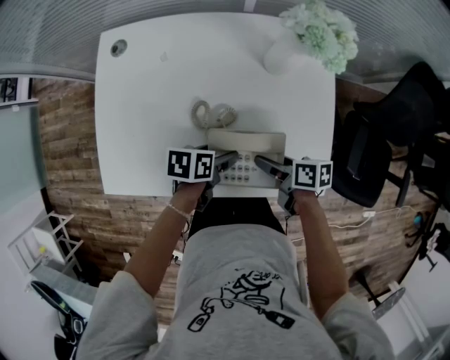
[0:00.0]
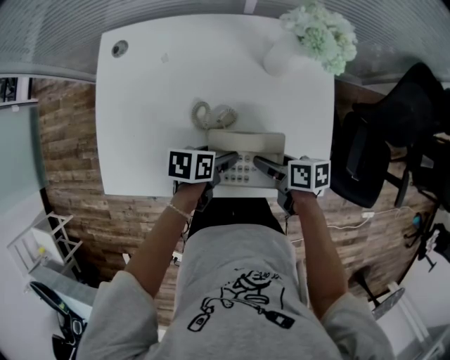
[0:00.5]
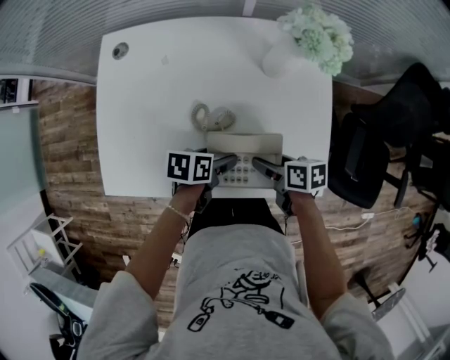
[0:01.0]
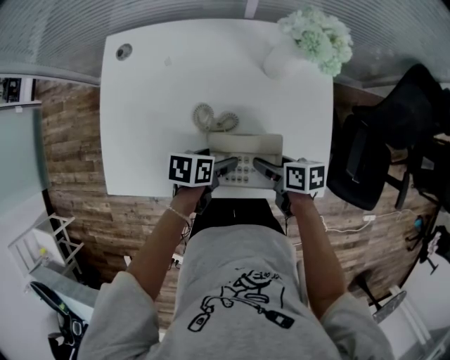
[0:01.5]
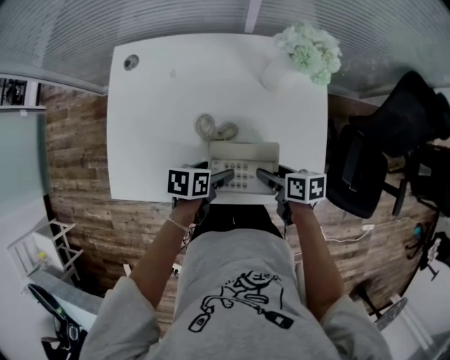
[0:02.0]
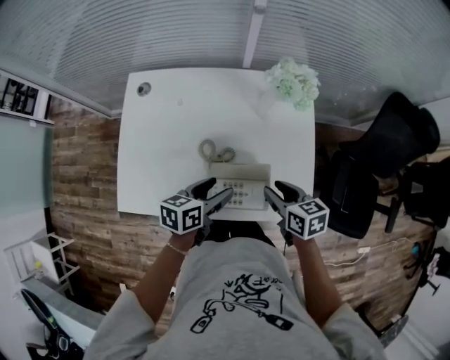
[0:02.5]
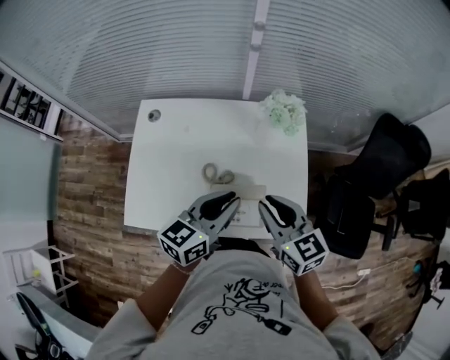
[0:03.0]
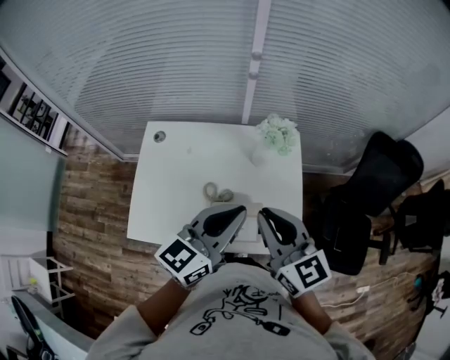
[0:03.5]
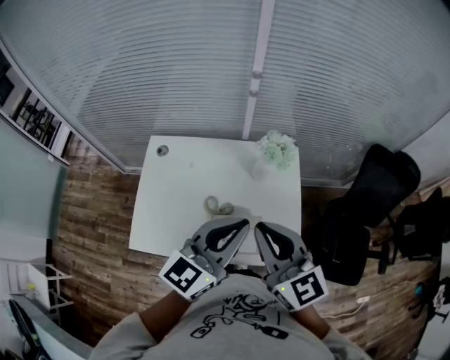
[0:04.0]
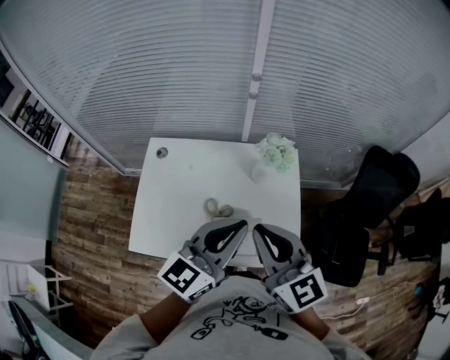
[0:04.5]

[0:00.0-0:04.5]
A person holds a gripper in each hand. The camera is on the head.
0:00.0 to 0:02.0: There are only small adjustments of the grippers.
0:02.0 to 0:04.5: Both grippers travel together upward, about 40 cm. The left gripper tips its fingers upward by roughly 50 degrees, and closes up, while the right gripper tips its fingers upward by roughly 40 degrees, and closes.

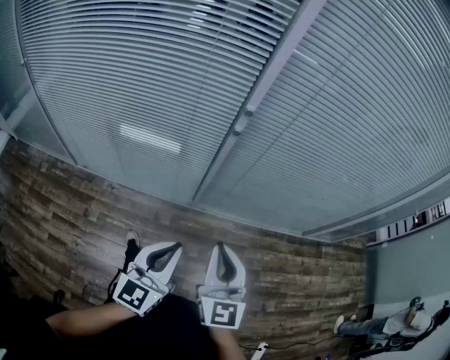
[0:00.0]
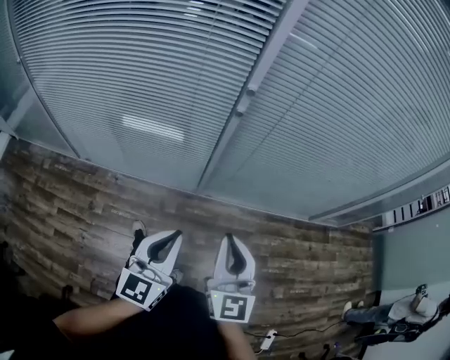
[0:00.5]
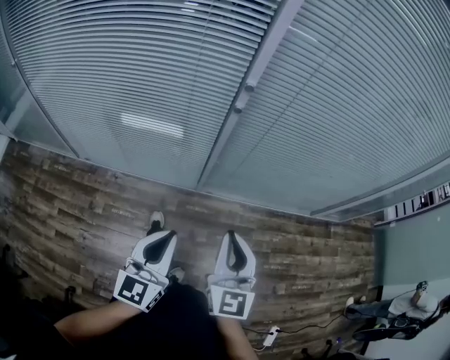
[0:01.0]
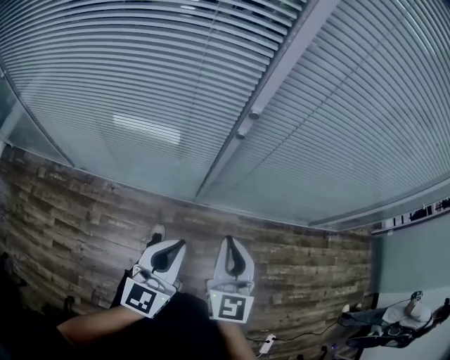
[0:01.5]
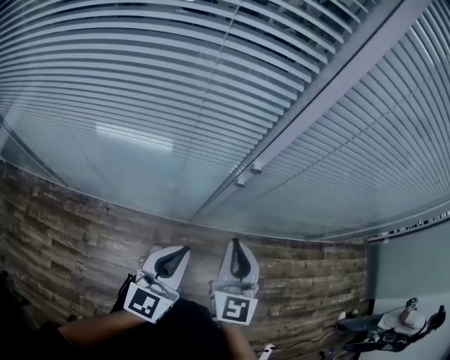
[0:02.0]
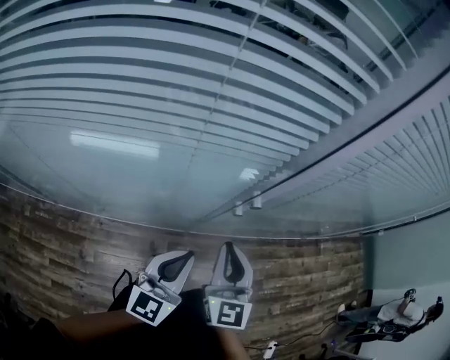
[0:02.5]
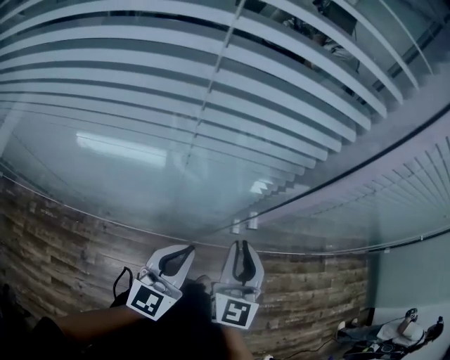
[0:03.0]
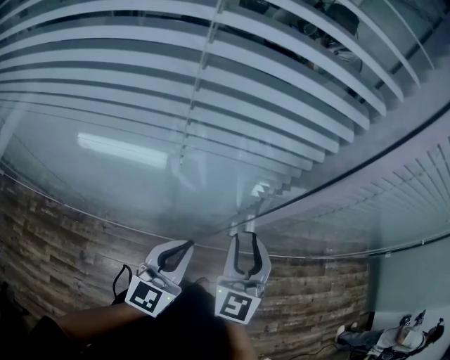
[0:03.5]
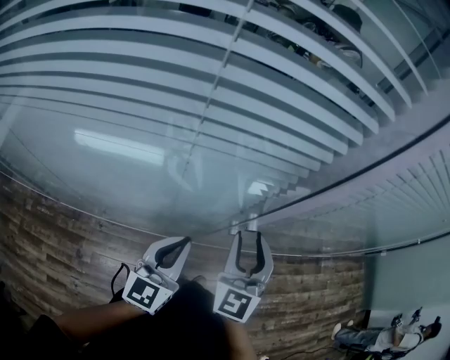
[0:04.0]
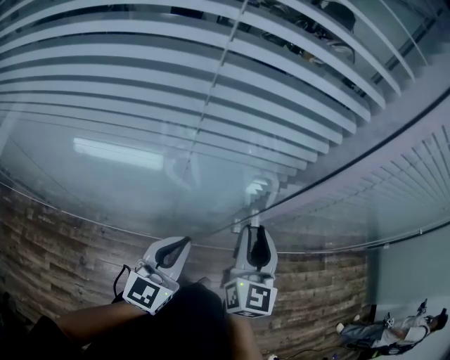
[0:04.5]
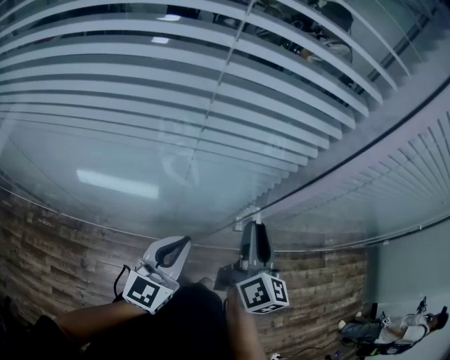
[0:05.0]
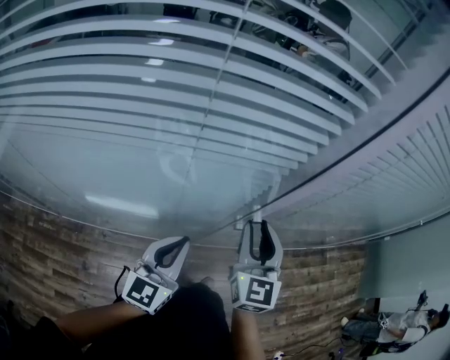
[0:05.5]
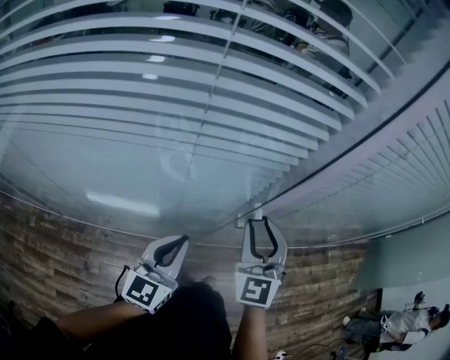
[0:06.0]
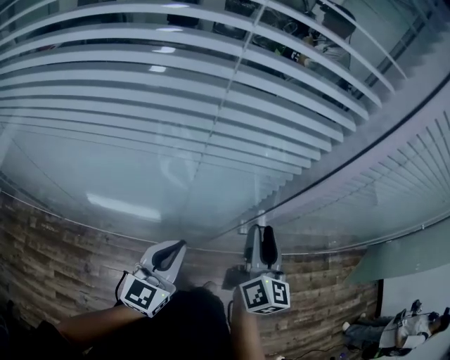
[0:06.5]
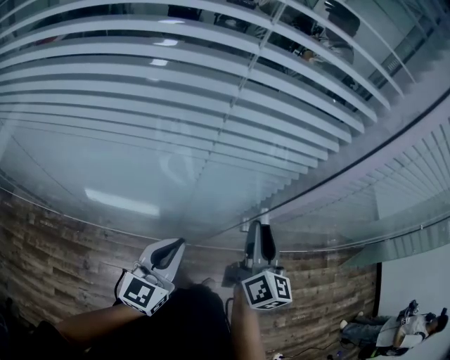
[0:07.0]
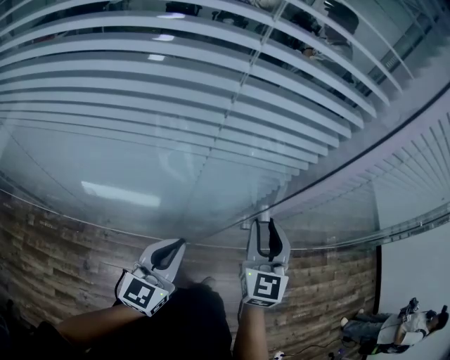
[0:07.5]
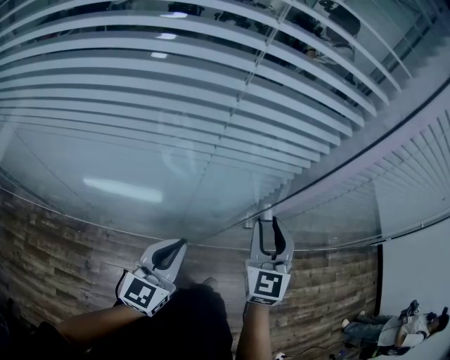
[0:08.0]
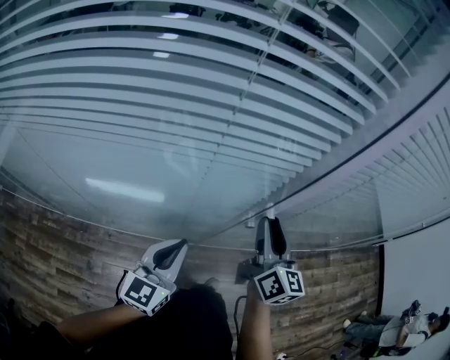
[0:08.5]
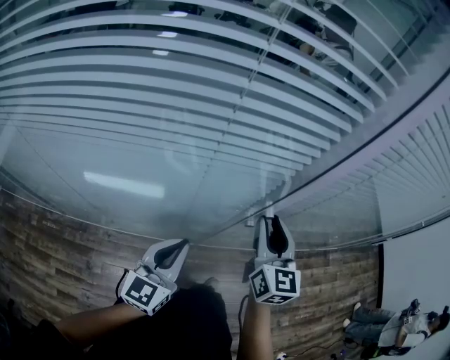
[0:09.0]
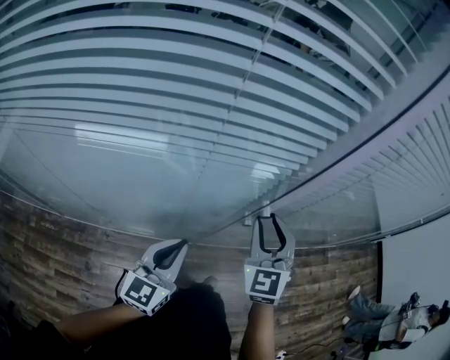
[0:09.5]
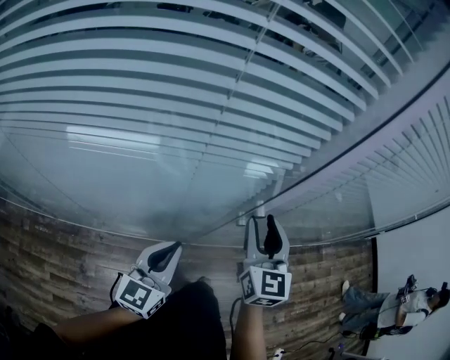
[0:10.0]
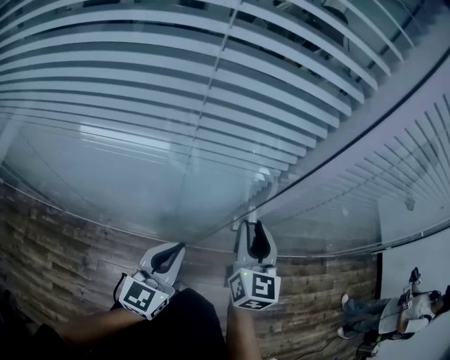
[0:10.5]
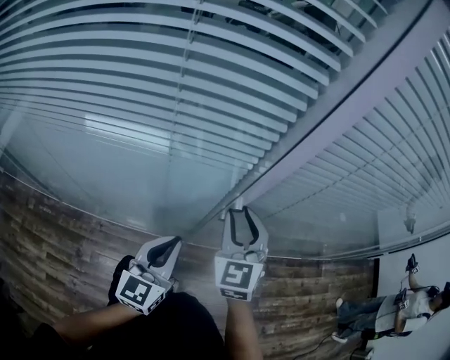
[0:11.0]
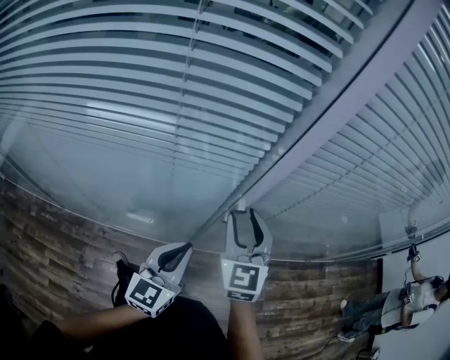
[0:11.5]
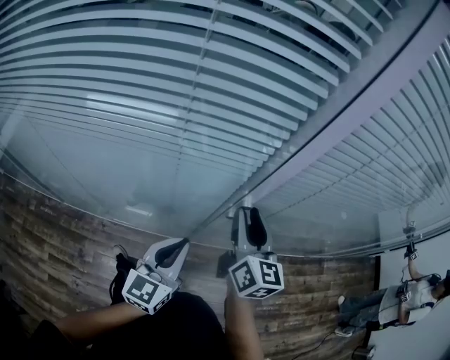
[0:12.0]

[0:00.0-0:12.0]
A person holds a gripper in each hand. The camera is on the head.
0:00.0 to 0:02.0: The grippers both shift forward by approximately 20 cm.
0:02.0 to 0:04.0: Both grippers travel together forward, about 15 cm. The right gripper opens its fingers.
0:10.0 to 0:12.0: The right gripper swivels roughly 20 degrees. Meanwhile the left gripper moves to the right, roughly 5 cm.

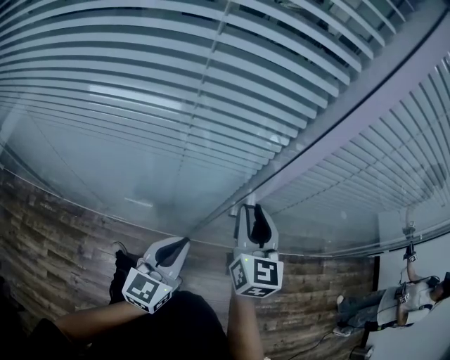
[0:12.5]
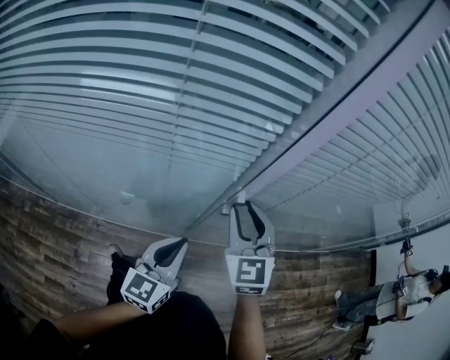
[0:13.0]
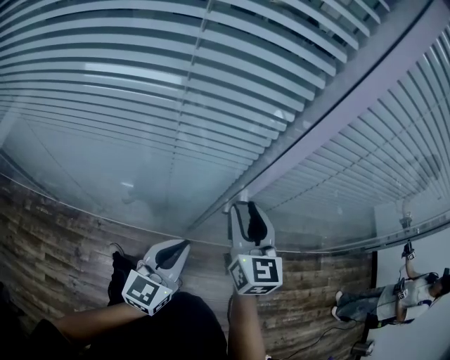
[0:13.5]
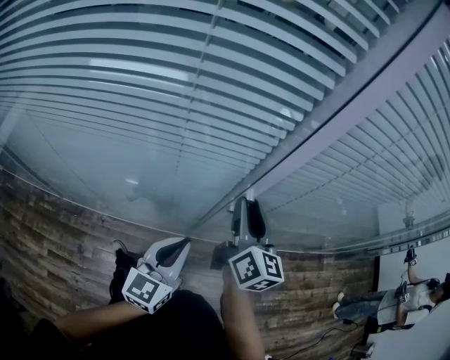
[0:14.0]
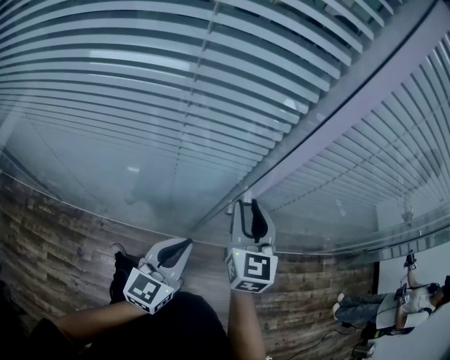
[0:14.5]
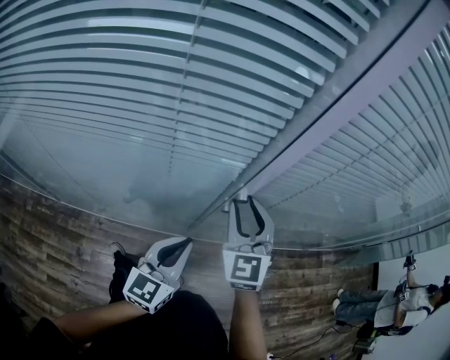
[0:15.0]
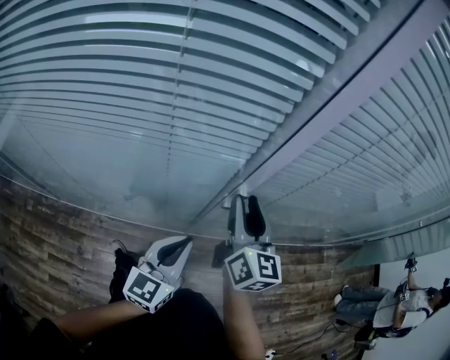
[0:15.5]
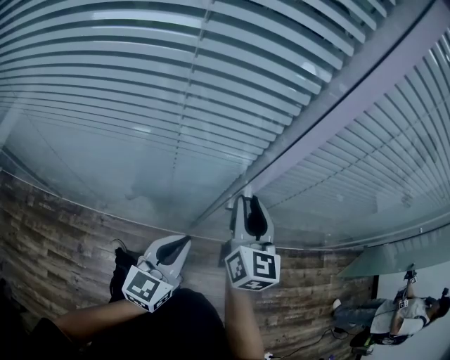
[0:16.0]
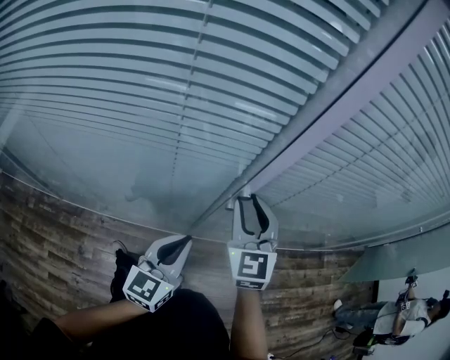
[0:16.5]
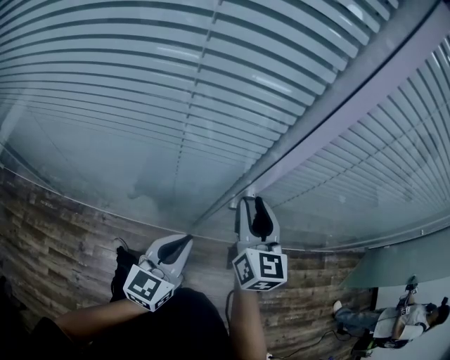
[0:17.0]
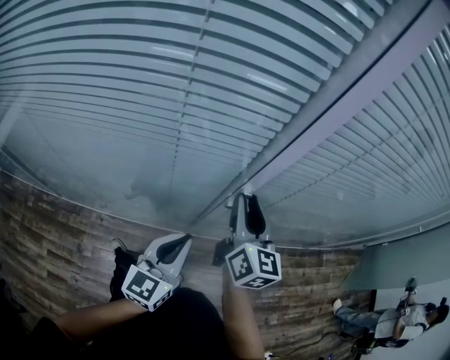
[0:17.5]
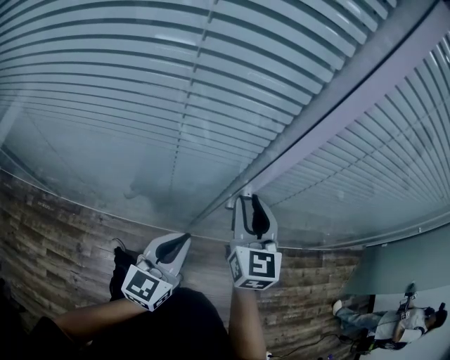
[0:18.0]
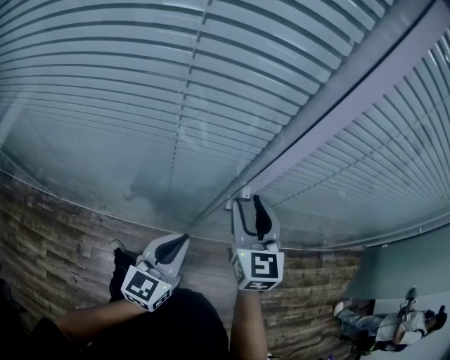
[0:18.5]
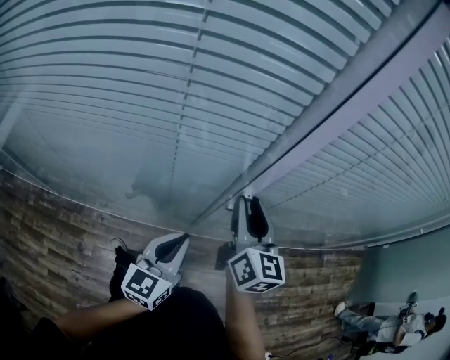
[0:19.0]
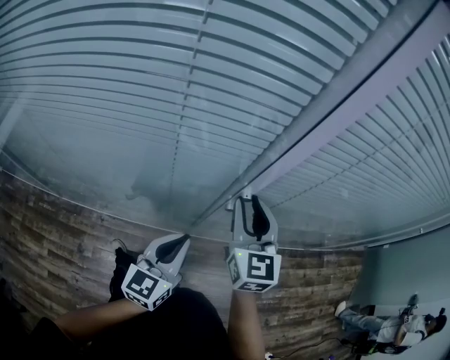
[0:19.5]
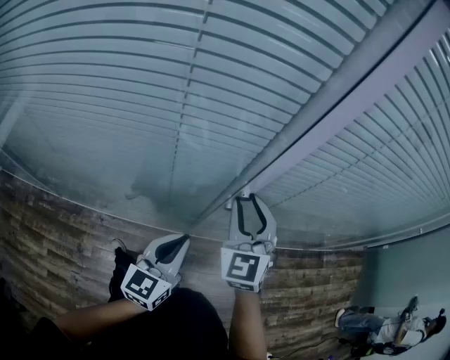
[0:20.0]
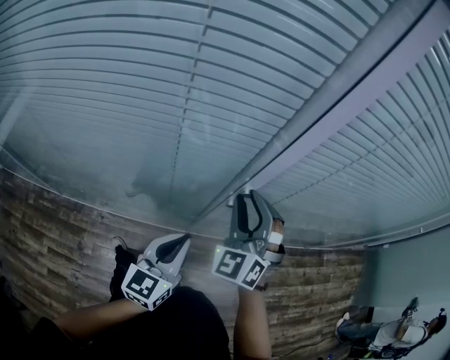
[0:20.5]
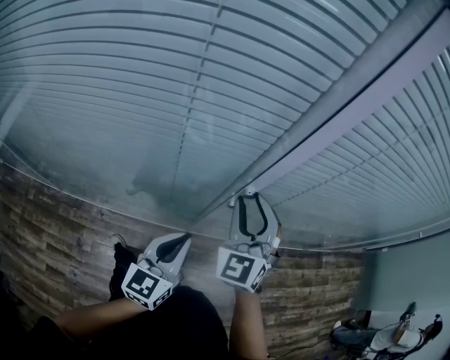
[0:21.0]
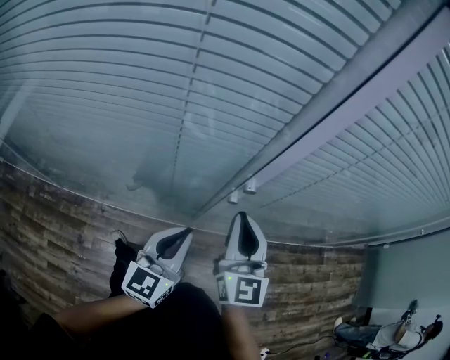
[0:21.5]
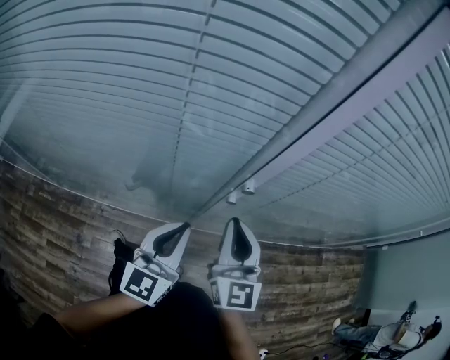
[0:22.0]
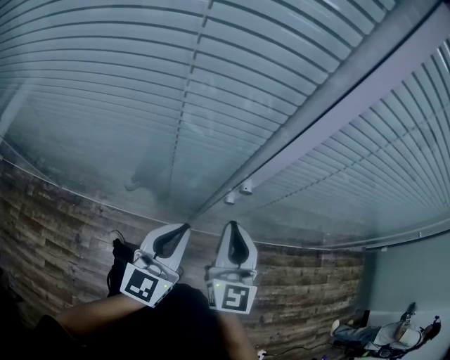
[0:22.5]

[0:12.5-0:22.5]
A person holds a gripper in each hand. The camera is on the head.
0:18.5 to 0:20.5: The right gripper twists about 40 degrees counterclockwise, seen from behind.
0:20.5 to 0:22.5: The left gripper heads upward, covering some 5 cm. The right gripper is displaced backward by roughly 5 cm, rolls clockwise, seen from behind, by some 50 degrees, and closes.

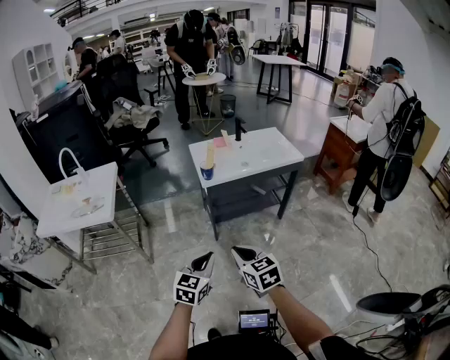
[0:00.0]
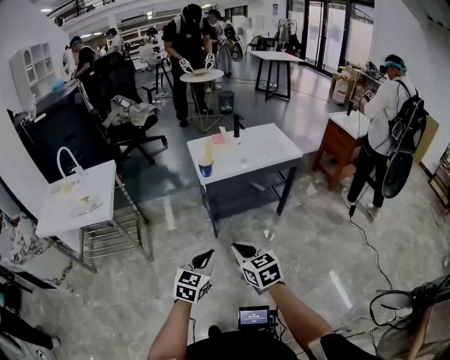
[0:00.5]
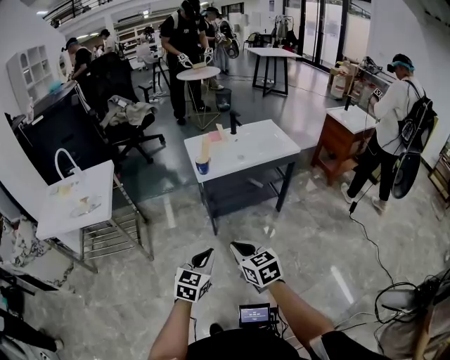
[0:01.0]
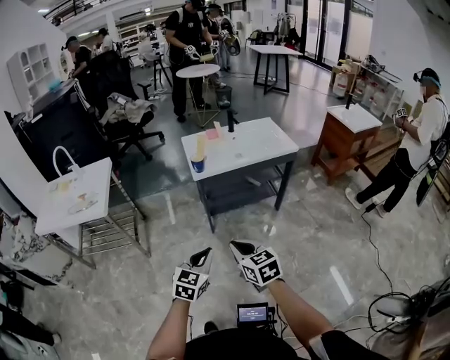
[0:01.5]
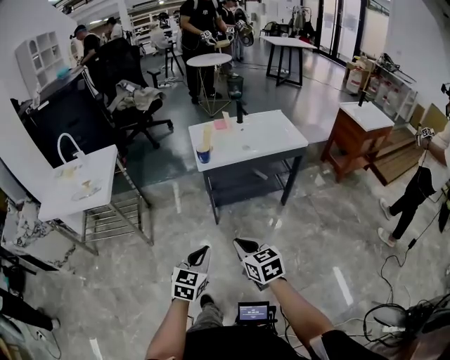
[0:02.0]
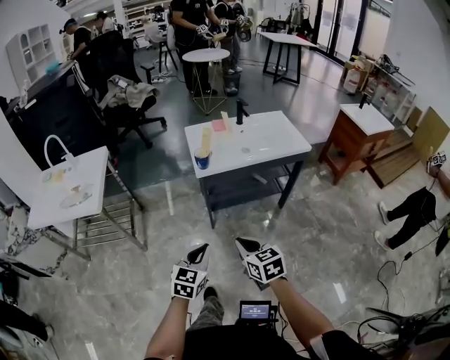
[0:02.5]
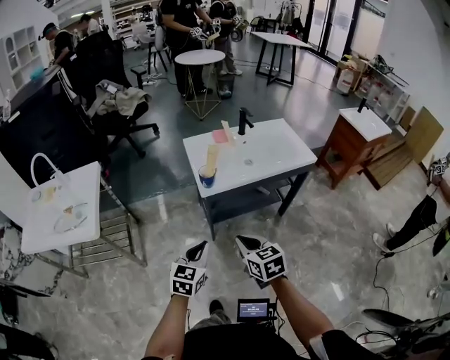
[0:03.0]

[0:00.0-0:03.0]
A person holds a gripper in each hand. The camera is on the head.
0:00.0 to 0:01.5: The grippers move only a little.
0:01.5 to 0:03.0: Both grippers travel together forward, some 20 cm.
